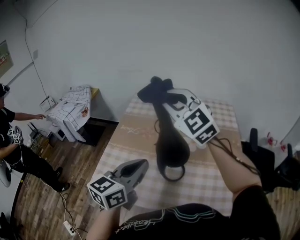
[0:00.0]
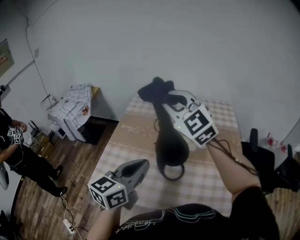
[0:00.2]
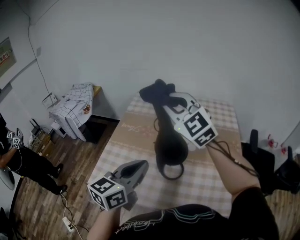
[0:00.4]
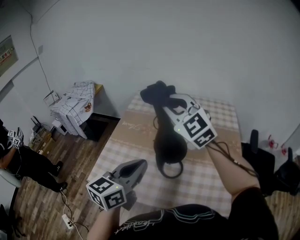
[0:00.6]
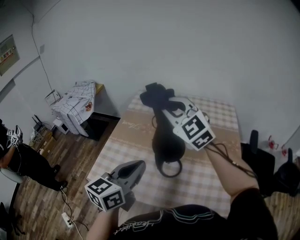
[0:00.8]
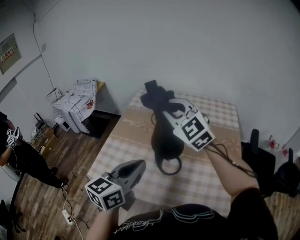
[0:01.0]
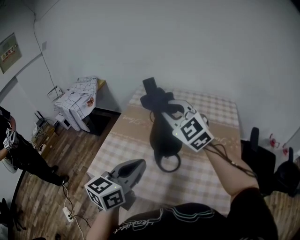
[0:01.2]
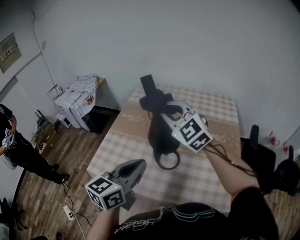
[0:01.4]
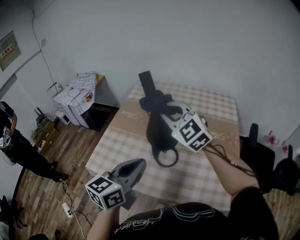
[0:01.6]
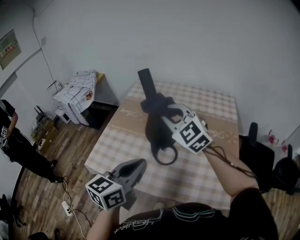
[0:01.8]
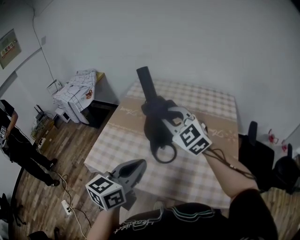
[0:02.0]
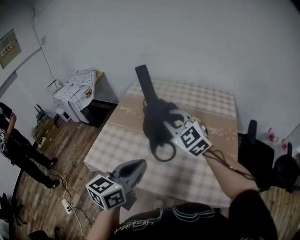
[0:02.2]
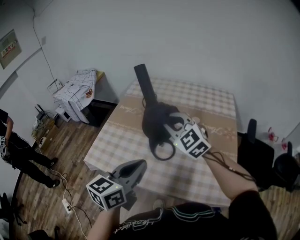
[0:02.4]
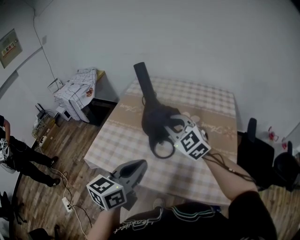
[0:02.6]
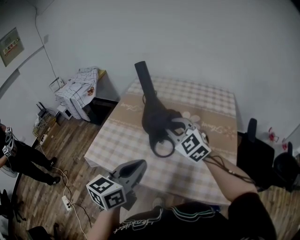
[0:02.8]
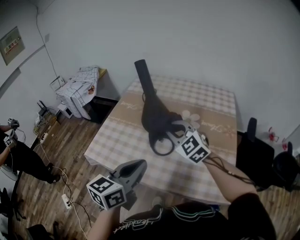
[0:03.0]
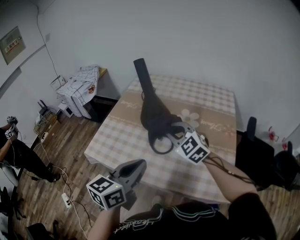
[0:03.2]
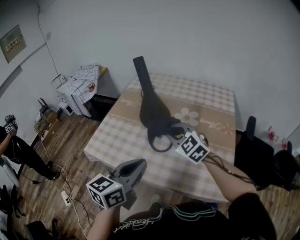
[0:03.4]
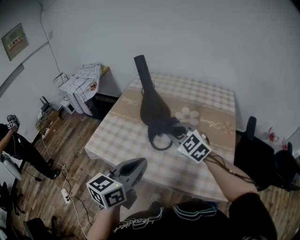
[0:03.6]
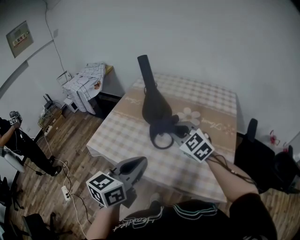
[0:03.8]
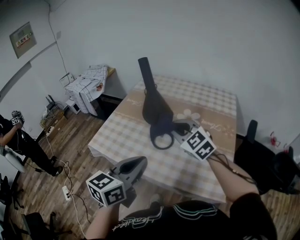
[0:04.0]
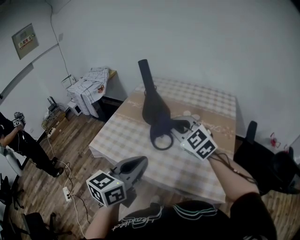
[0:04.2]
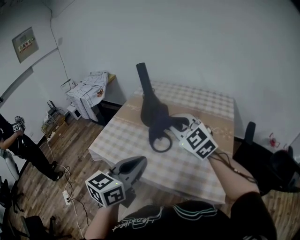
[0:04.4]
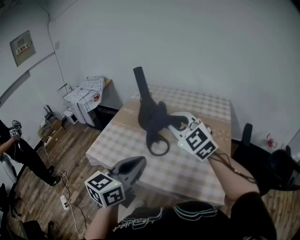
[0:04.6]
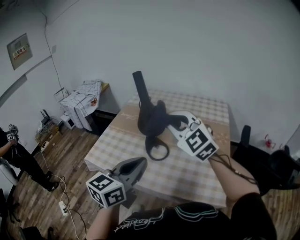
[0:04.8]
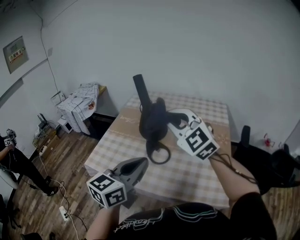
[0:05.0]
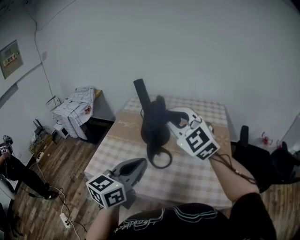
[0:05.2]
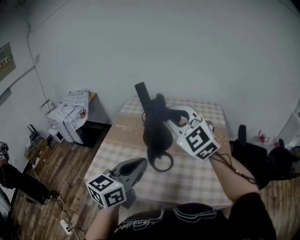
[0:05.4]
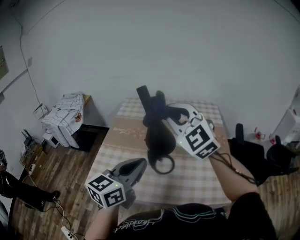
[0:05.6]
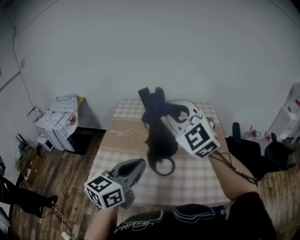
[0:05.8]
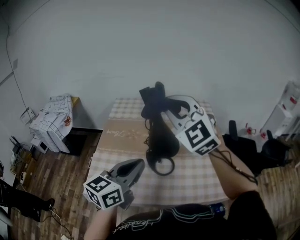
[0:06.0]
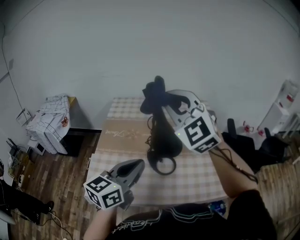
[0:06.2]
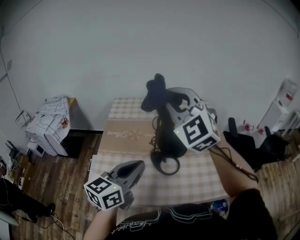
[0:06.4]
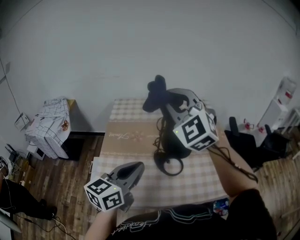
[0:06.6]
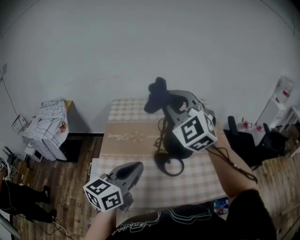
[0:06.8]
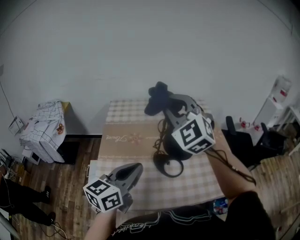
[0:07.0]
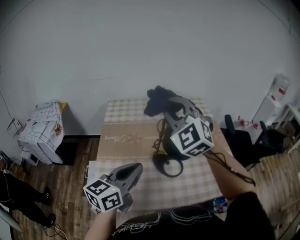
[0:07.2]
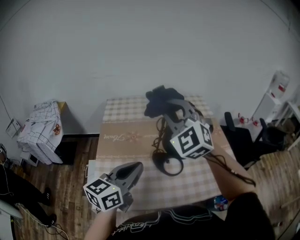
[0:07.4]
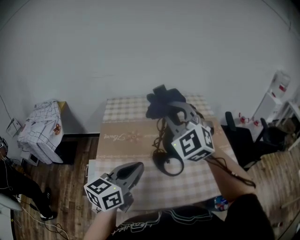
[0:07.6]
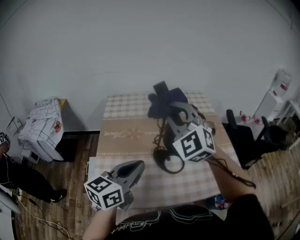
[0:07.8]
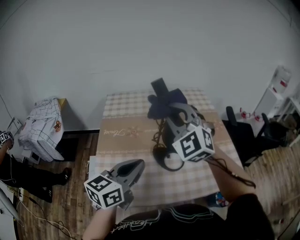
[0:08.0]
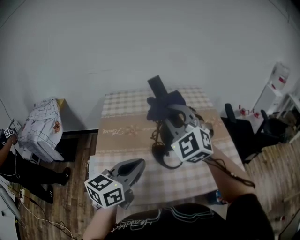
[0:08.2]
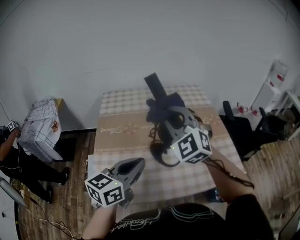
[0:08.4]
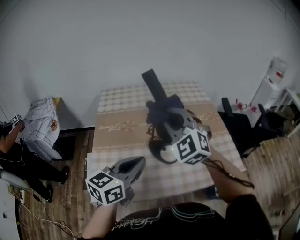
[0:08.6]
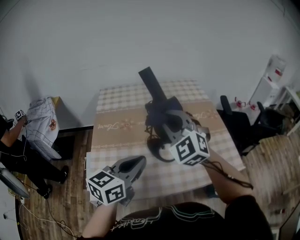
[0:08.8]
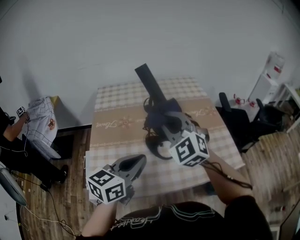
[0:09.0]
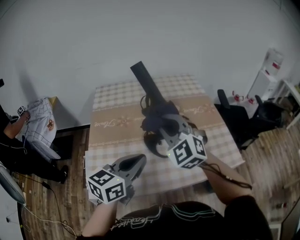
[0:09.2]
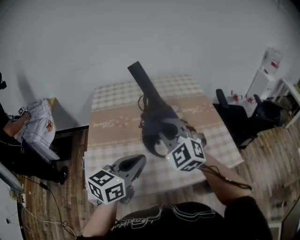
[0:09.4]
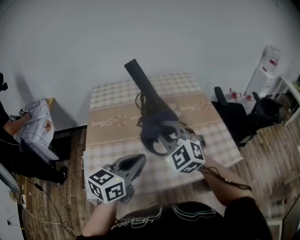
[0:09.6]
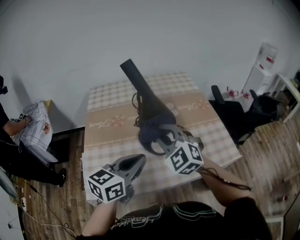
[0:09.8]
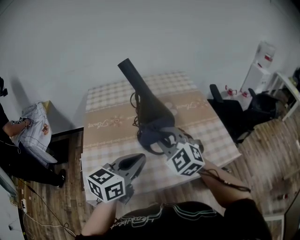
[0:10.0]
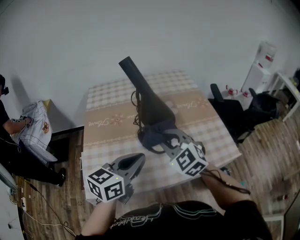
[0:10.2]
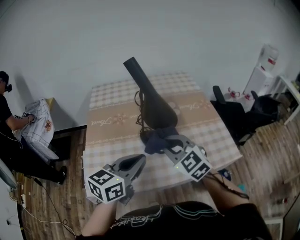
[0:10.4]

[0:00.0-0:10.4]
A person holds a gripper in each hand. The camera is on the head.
0:00.0 to 0:01.4: The left gripper shifts about 5 cm backward. The right gripper is displaced downward by approximately 5 cm.
0:01.4 to 0:03.0: The right gripper moves downward, backward and to the right, approximately 15 cm. Meanwhile the left gripper heads backward, covering approximately 5 cm.
0:03.0 to 0:04.4: The left gripper heads backward, covering roughly 5 cm. The right gripper heads upward and backward, covering some 10 cm.
0:04.4 to 0:06.0: The left gripper moves to the left and forward, approximately 20 cm, and turns by approximately 20 degrees. Meanwhile the right gripper goes approximately 20 cm upward, to the left and forward, and swivels about 30 degrees.
0:06.0 to 0:07.4: The grippers both shift to the left by approximately 10 cm.
0:07.4 to 0:09.0: The left gripper shifts approximately 5 cm to the right. The right gripper is displaced downward and to the right by approximately 10 cm.
0:09.0 to 0:10.4: The right gripper shifts some 15 cm downward and backward, and changes its angle by some 30 degrees.

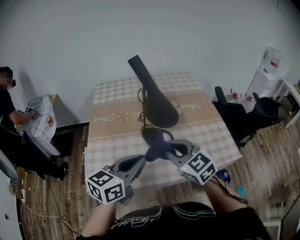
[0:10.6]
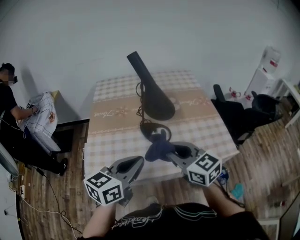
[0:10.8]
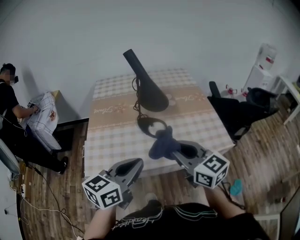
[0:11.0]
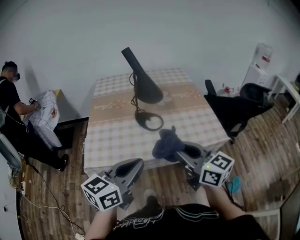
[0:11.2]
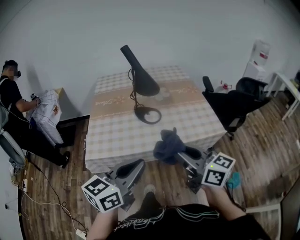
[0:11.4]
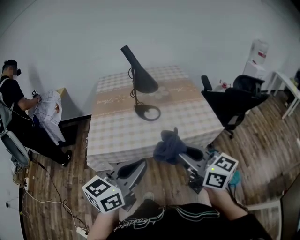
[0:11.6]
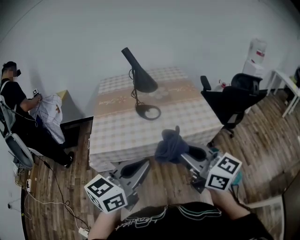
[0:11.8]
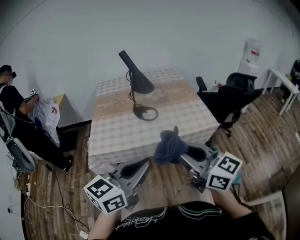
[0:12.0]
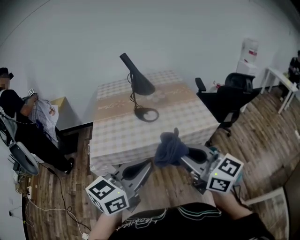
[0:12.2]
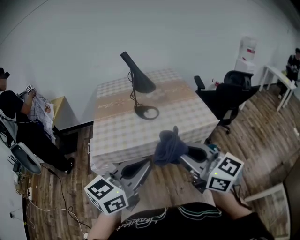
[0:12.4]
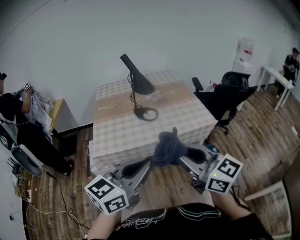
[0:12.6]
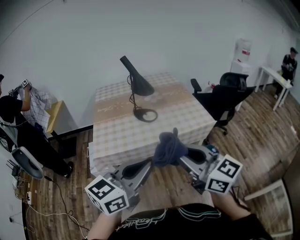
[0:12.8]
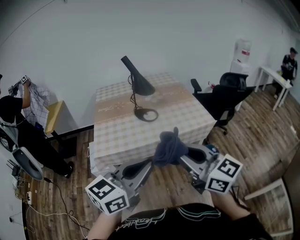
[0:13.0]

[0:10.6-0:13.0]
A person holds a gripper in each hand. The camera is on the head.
0:10.6 to 0:11.8: Both grippers move backward, about 30 cm. The right gripper rotates approximately 30 degrees.
0:11.8 to 0:13.0: The two grippers go some 10 cm backward.

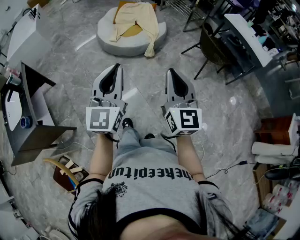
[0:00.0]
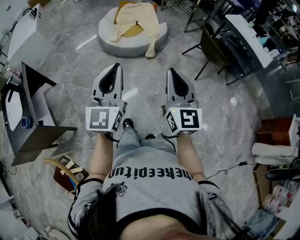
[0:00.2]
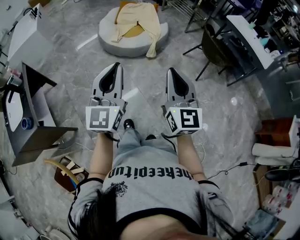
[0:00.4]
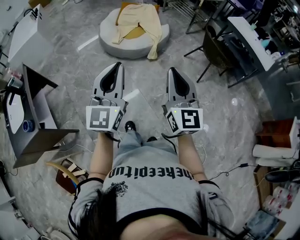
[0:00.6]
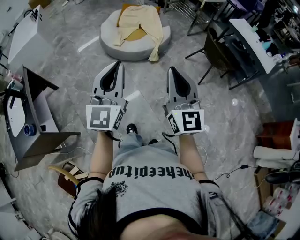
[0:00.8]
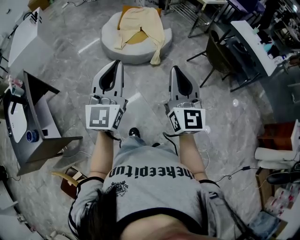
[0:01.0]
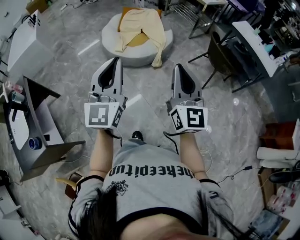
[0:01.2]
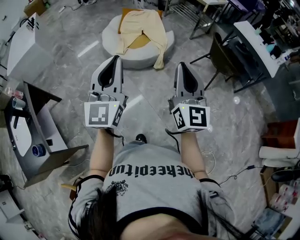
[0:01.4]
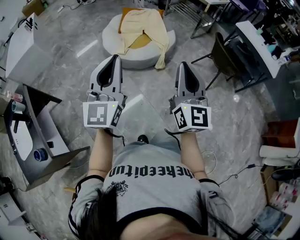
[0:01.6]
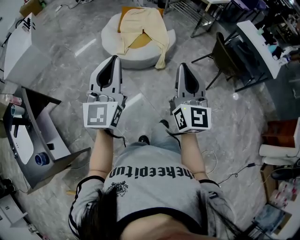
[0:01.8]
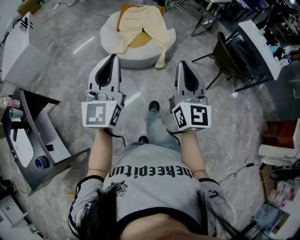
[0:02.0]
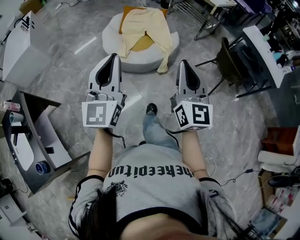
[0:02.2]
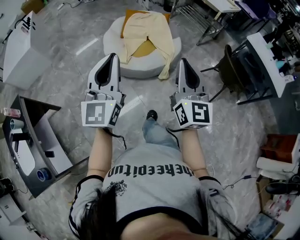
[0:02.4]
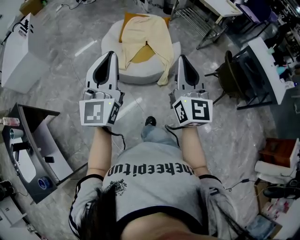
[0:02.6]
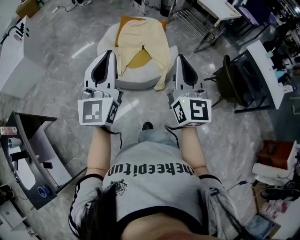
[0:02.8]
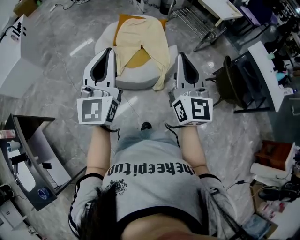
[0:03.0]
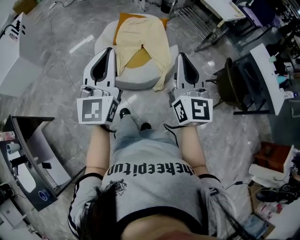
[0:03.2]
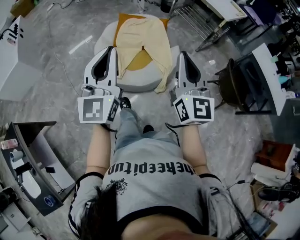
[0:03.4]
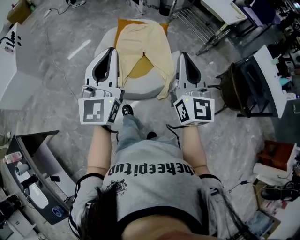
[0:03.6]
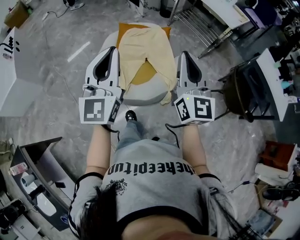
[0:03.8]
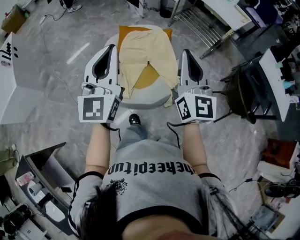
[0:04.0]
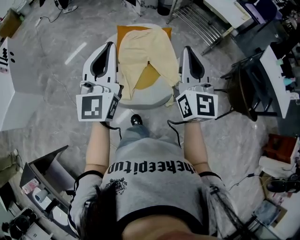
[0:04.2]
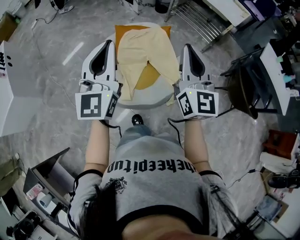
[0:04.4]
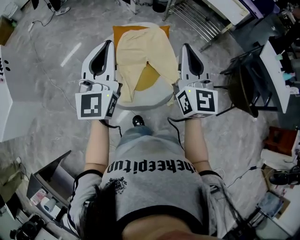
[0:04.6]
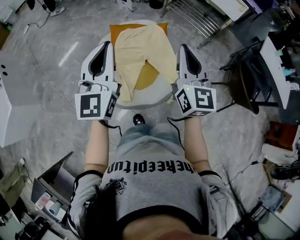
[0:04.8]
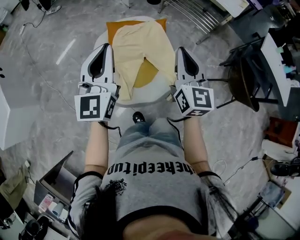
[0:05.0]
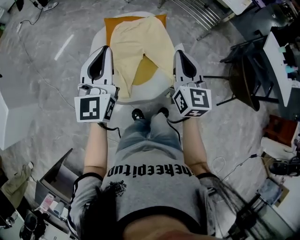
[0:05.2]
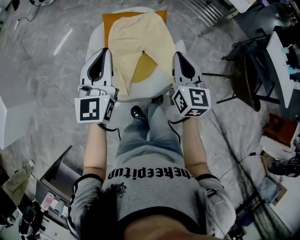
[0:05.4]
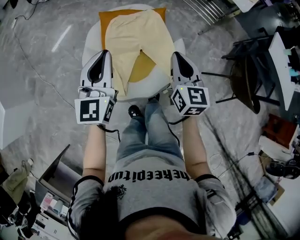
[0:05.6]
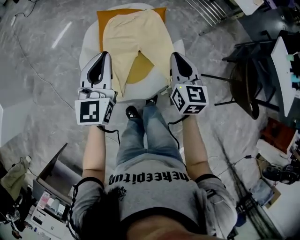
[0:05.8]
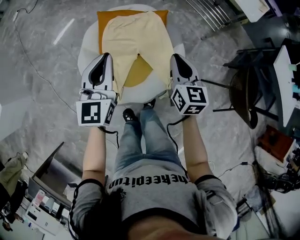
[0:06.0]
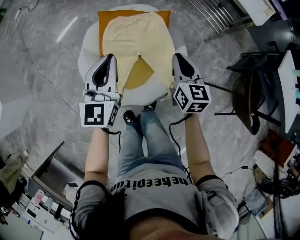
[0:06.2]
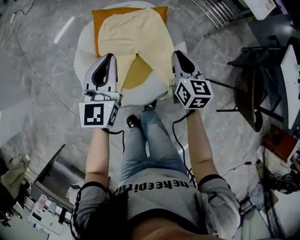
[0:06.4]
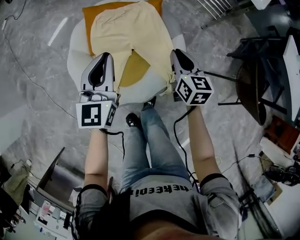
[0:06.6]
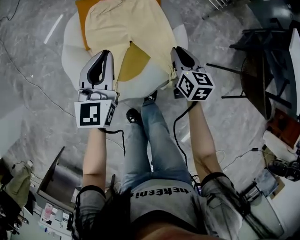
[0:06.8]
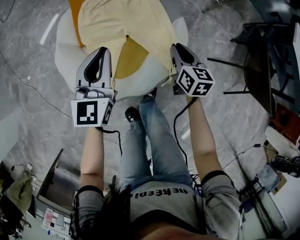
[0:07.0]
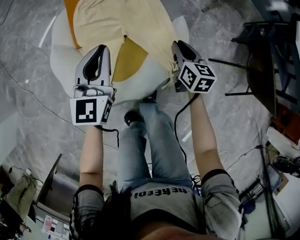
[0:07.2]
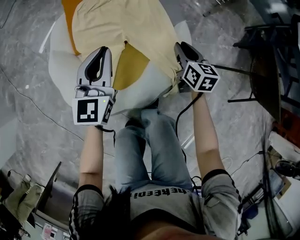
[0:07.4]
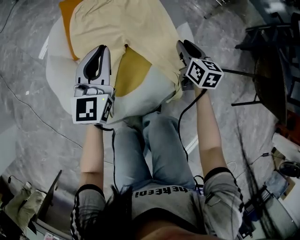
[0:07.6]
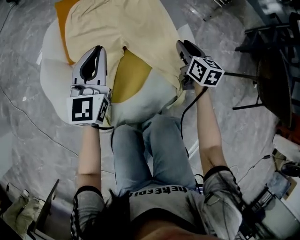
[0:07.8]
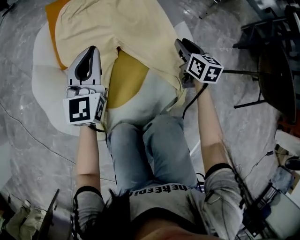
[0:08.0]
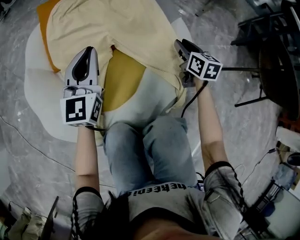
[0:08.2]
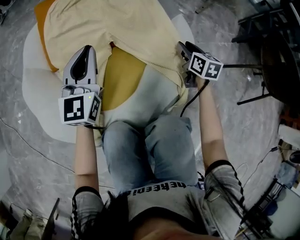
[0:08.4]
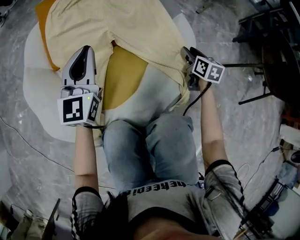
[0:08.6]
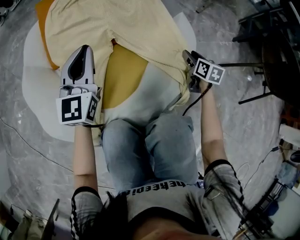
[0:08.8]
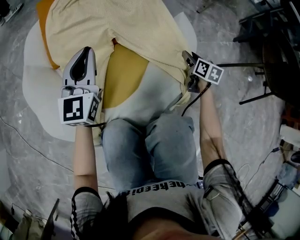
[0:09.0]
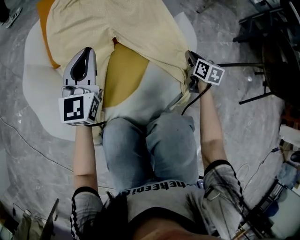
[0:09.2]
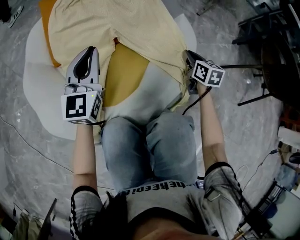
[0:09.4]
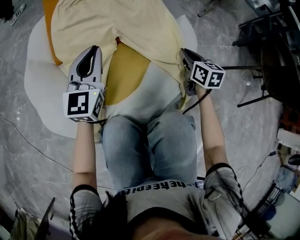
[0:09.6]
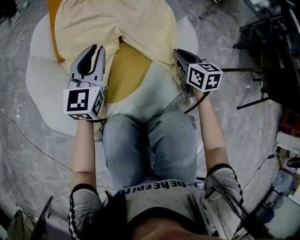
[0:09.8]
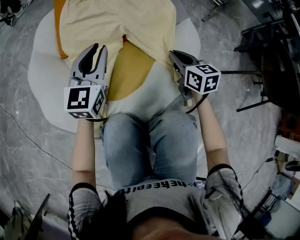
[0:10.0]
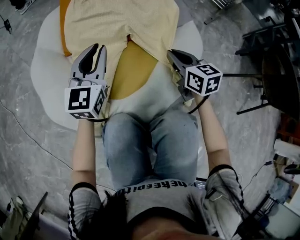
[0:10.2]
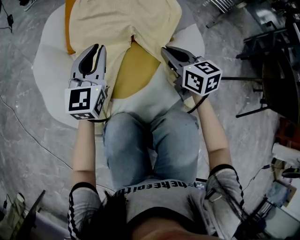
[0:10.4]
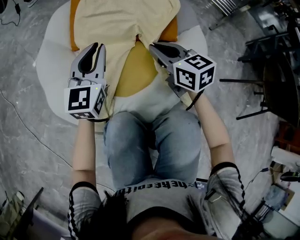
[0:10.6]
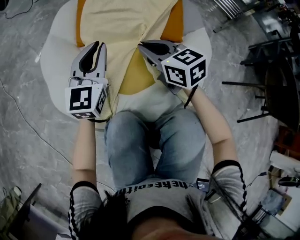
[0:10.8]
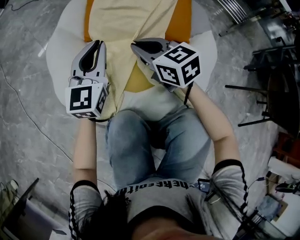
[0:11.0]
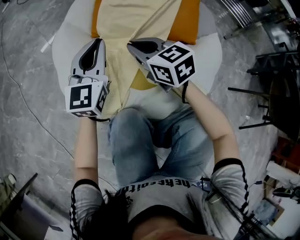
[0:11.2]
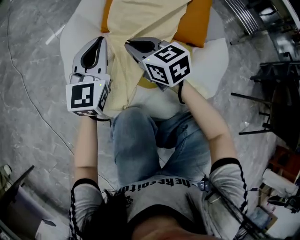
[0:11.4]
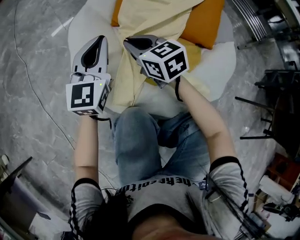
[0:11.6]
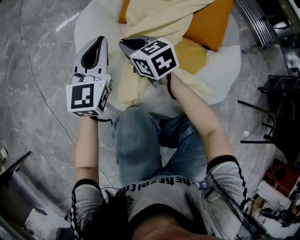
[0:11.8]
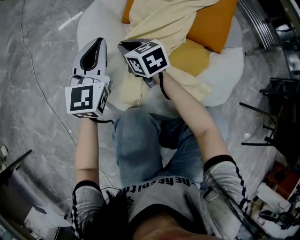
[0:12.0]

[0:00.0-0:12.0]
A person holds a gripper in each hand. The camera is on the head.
0:00.0 to 0:01.6: Both grippers travel together forward and to the left, some 25 cm.
0:01.6 to 0:03.0: Both grippers travel together forward, some 35 cm.
0:03.0 to 0:04.4: Both grippers travel together forward, some 35 cm.
0:04.4 to 0:06.0: The grippers both shift downward and forward by approximately 30 cm. The right gripper changes its angle by about 30 degrees.
0:06.0 to 0:07.6: The two grippers go roughly 35 cm downward. The right gripper opens up.
0:07.6 to 0:09.0: The right gripper travels downward and to the right by approximately 25 cm; the left gripper travels downward by about 15 cm.
0:09.0 to 0:10.4: The left gripper moves to the left, some 5 cm. The right gripper is displaced to the left and upward by approximately 30 cm, changes its angle by roughly 40 degrees, and closes.
0:10.4 to 0:12.0: The left gripper moves some 20 cm, and turns by approximately 20 degrees, while the right gripper moves about 35 cm, and swivels roughly 30 degrees.
